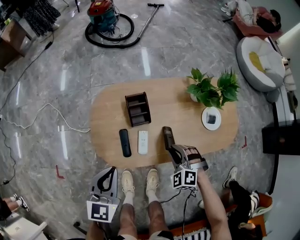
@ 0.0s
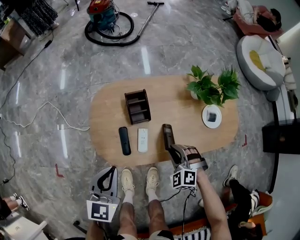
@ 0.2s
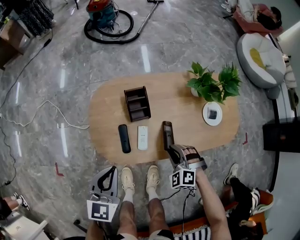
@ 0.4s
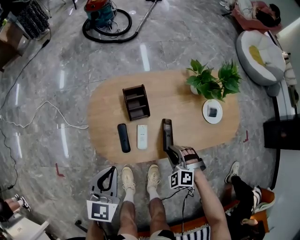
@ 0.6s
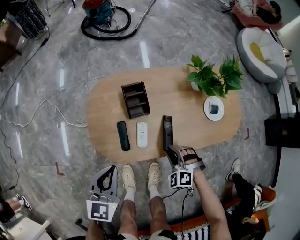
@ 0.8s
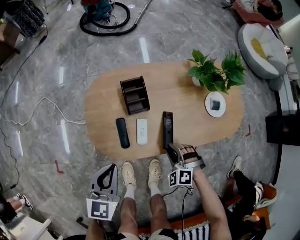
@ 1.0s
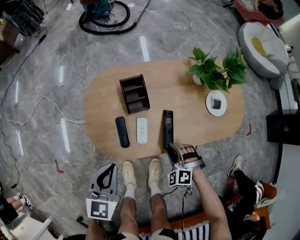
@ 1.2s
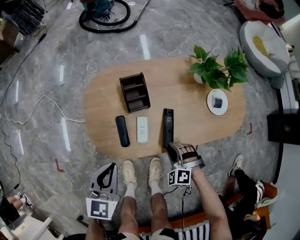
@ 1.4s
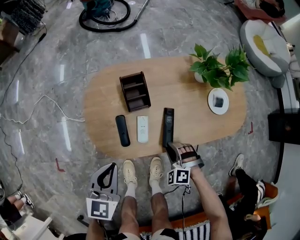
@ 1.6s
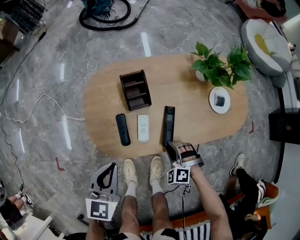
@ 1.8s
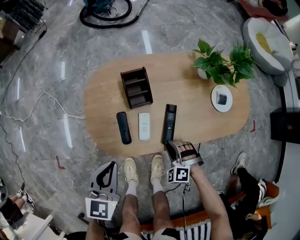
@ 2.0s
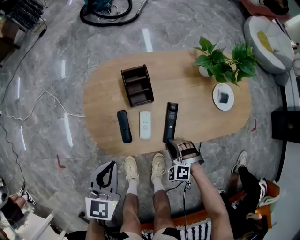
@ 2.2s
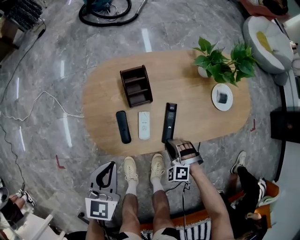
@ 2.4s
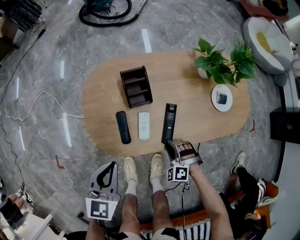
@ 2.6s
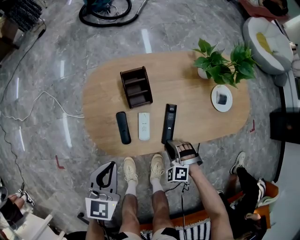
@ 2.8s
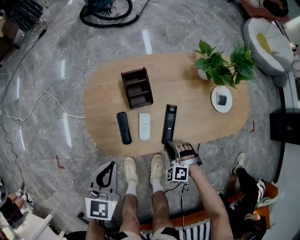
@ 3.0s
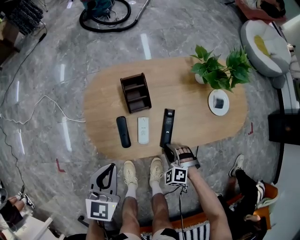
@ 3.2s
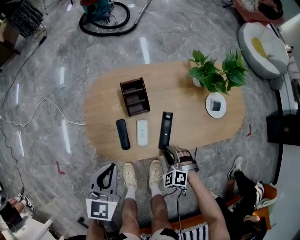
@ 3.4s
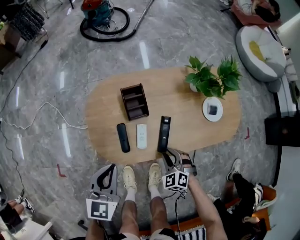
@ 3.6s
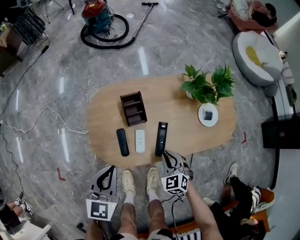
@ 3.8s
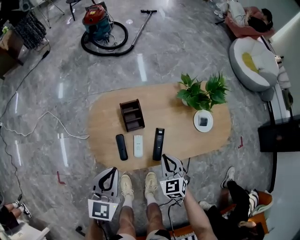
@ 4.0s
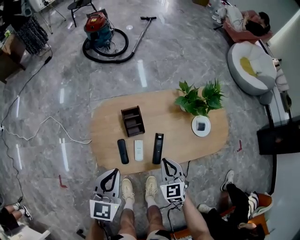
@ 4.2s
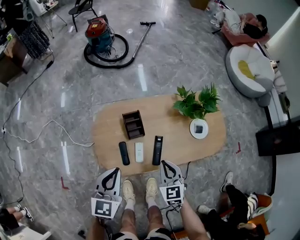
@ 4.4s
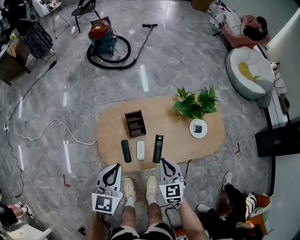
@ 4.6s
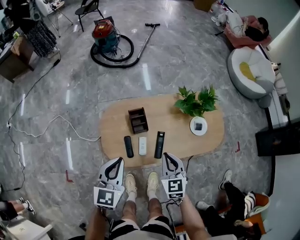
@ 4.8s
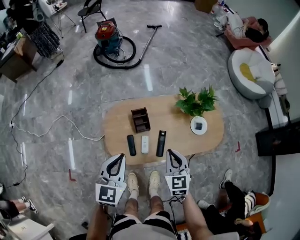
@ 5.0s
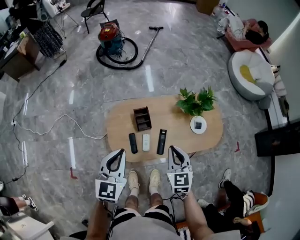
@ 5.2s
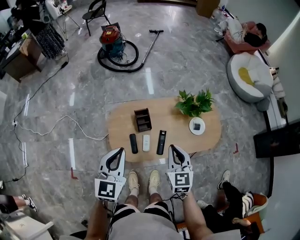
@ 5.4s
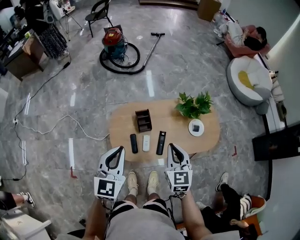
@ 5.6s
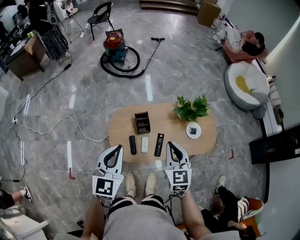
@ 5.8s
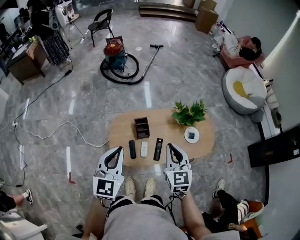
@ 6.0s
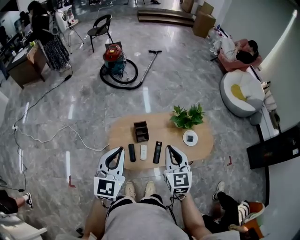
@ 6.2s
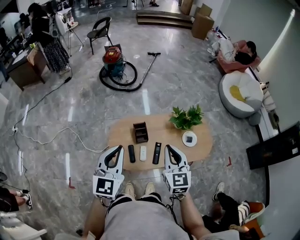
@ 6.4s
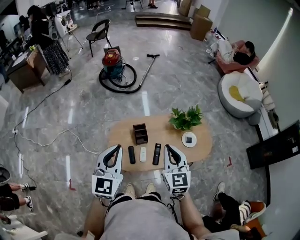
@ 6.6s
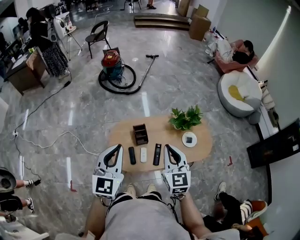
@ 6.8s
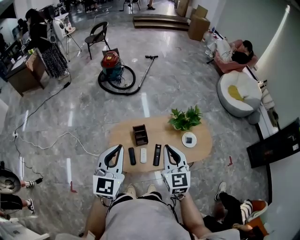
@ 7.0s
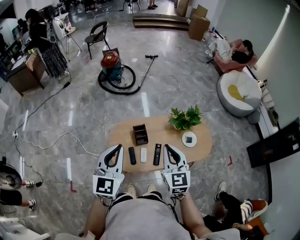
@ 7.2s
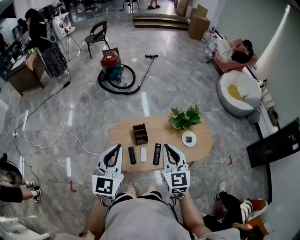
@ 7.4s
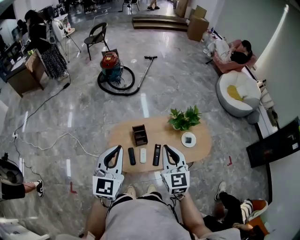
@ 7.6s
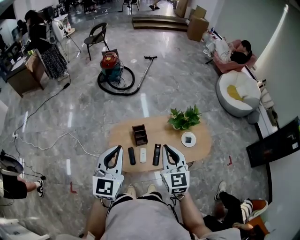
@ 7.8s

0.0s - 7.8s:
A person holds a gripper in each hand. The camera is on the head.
0.0s - 1.6s: The right gripper travels downward and backward by about 10 cm; the left gripper heads downward, covering roughly 5 cm.
1.6s - 3.2s: The grippers stay close to where they were, moving slightly.
3.2s - 4.6s: The right gripper moves upward, about 30 cm, rotates around the line of its fingers by some 50 degrees, clockwise from behind, and closes up; the left gripper shifts approximately 15 cm upward.
4.6s - 6.2s: The two grippers go about 25 cm upward.
6.2s - 7.8s: The grippers stay close to where they were, moving slightly.

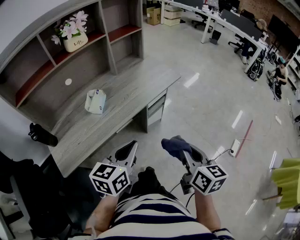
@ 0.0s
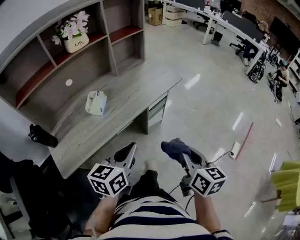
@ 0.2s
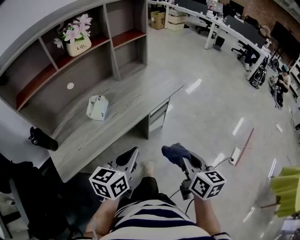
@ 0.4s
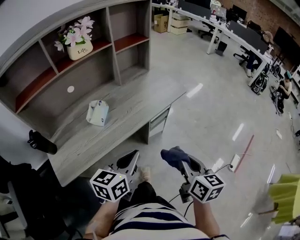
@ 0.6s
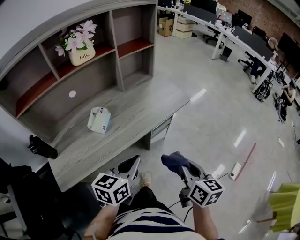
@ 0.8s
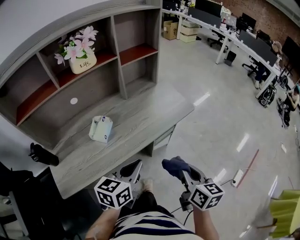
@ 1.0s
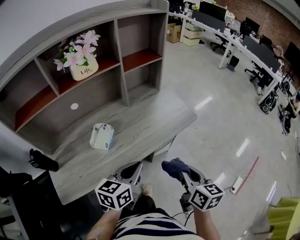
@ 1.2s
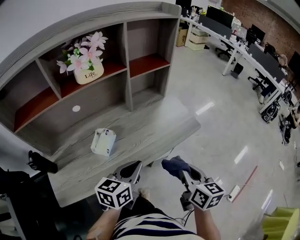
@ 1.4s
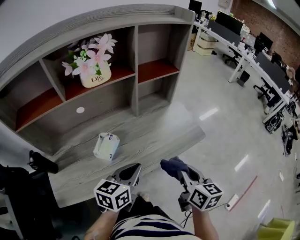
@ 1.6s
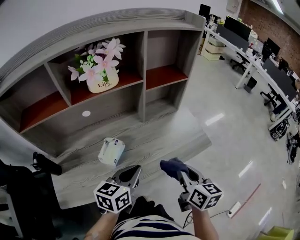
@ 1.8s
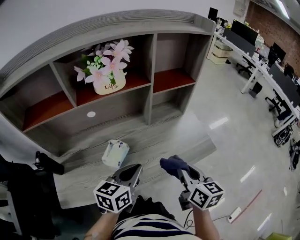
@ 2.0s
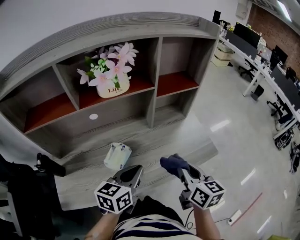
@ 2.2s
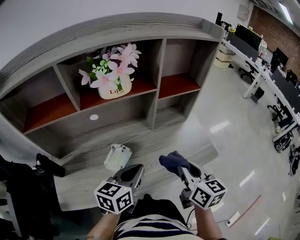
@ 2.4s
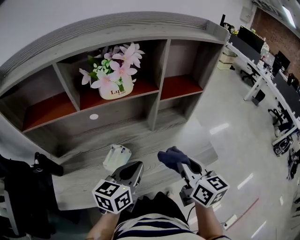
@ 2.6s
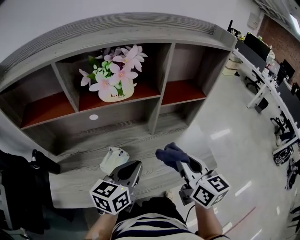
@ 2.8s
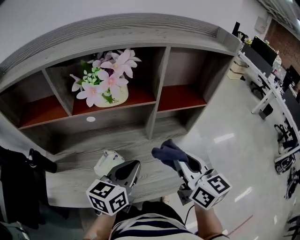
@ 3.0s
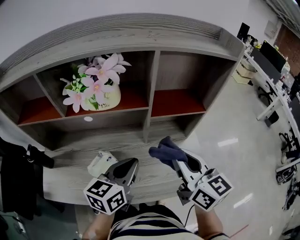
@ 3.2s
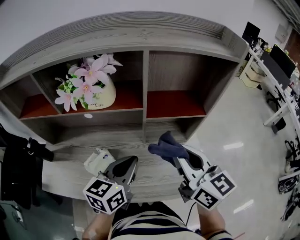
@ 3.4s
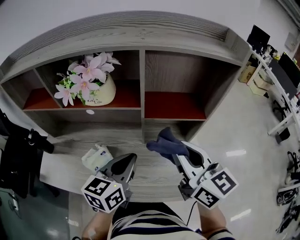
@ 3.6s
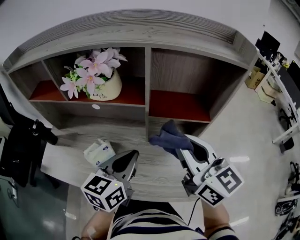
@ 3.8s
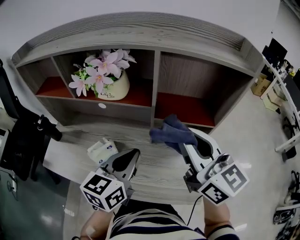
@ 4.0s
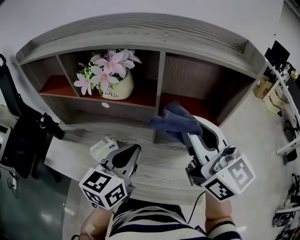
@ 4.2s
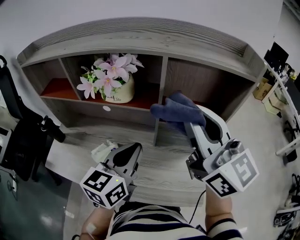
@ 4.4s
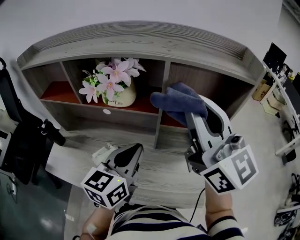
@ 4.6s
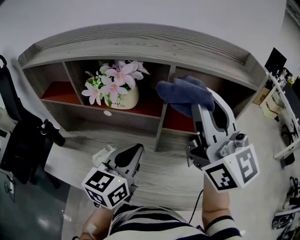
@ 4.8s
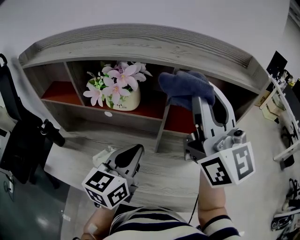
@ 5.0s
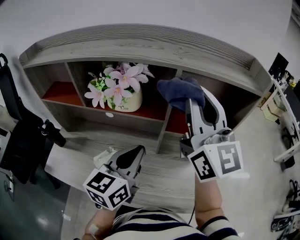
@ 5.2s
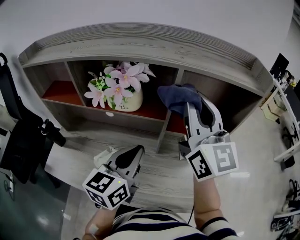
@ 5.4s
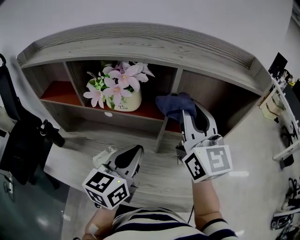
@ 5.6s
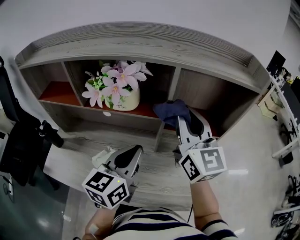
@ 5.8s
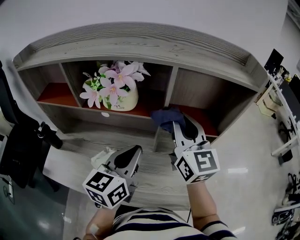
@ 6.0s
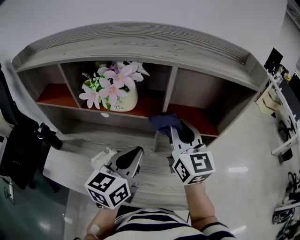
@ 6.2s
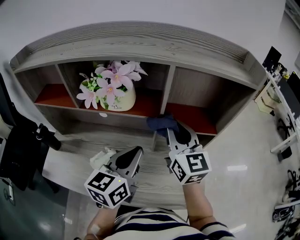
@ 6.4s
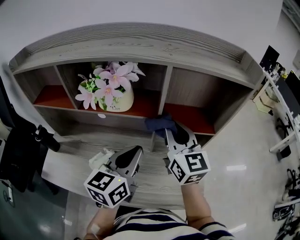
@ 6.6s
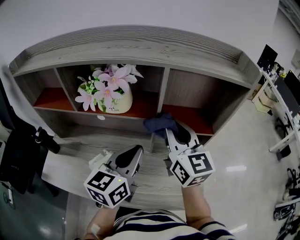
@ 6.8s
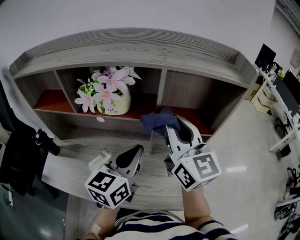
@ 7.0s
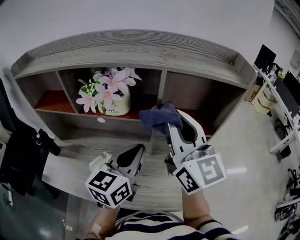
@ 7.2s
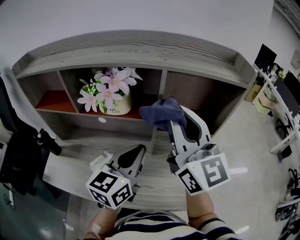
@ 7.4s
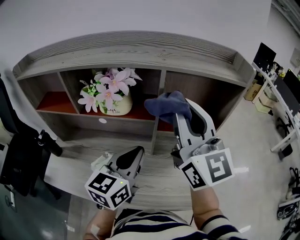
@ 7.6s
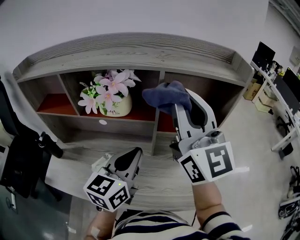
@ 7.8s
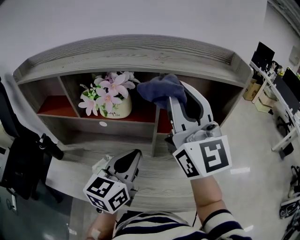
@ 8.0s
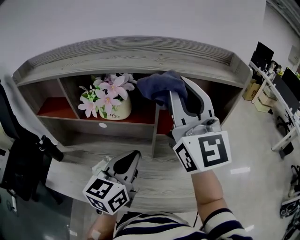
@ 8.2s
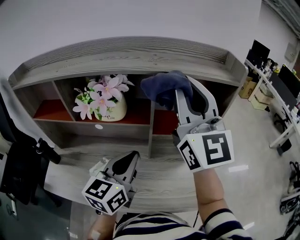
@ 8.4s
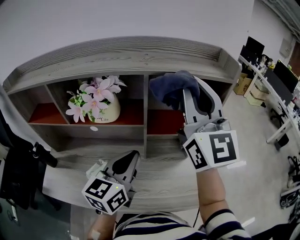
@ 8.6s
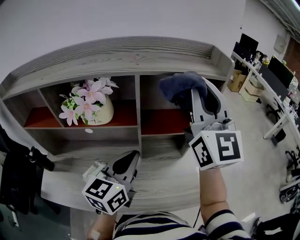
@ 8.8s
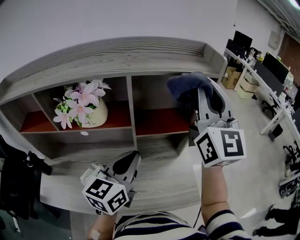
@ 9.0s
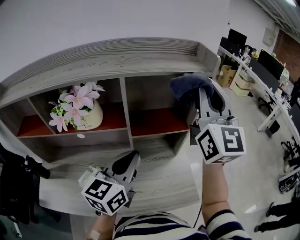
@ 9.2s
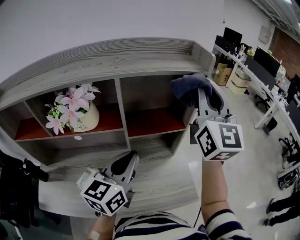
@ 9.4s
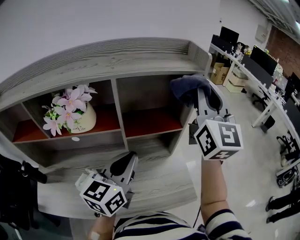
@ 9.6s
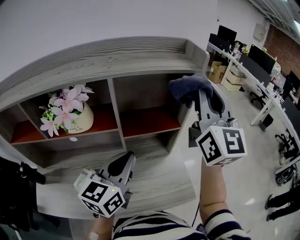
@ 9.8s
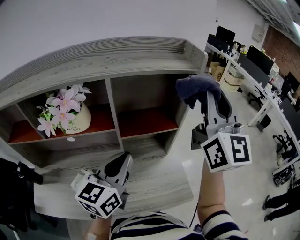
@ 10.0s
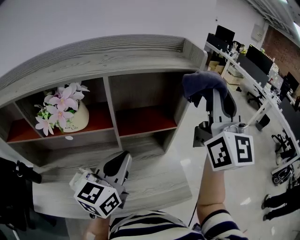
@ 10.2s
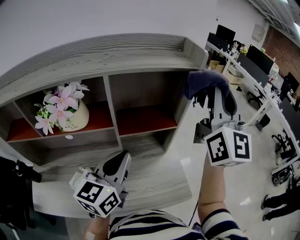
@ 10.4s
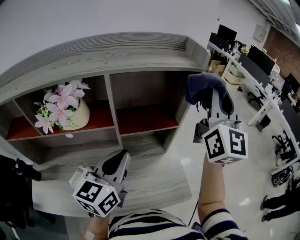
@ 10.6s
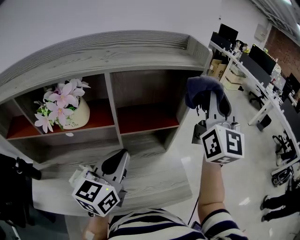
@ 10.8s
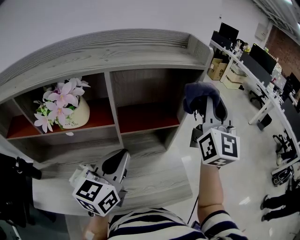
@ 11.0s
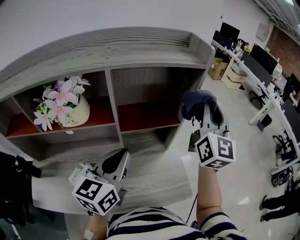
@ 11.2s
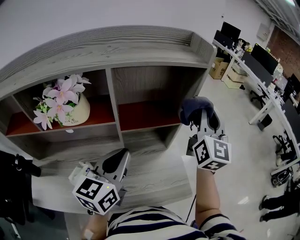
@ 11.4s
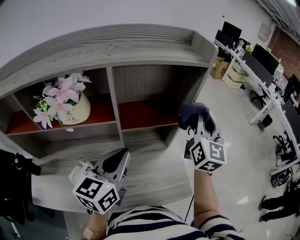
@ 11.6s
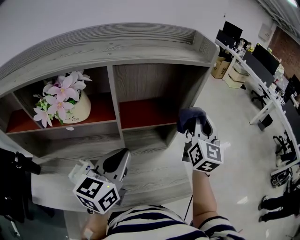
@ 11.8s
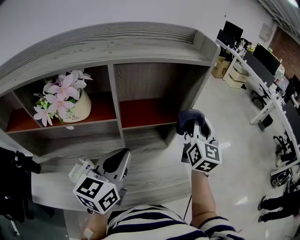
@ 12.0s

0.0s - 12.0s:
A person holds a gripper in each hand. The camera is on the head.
0.0s - 1.6s: Both grippers move forward, some 20 cm.
1.6s - 3.0s: The right gripper shifts roughly 20 cm forward and upward, and swivels some 30 degrees, while the left gripper is displaced forward and upward by some 15 cm.
3.0s - 4.4s: The left gripper goes approximately 10 cm upward, and rotates about 30 degrees. Meanwhile the right gripper travels upward by approximately 20 cm, and rotates roughly 40 degrees.
4.4s - 6.0s: The right gripper goes approximately 10 cm downward and forward.
6.0s - 7.6s: The right gripper heads upward, covering approximately 10 cm.
7.6s - 9.0s: The right gripper moves to the right, about 15 cm, and swivels roughly 20 degrees.
9.0s - 10.4s: The right gripper moves to the right, roughly 10 cm.
10.4s - 12.0s: The right gripper heads downward, covering some 20 cm, and turns by about 30 degrees.

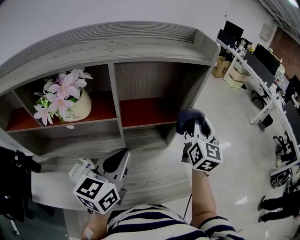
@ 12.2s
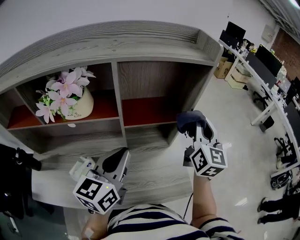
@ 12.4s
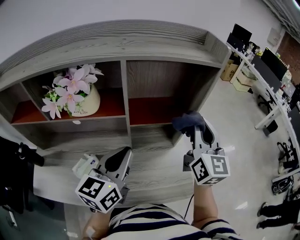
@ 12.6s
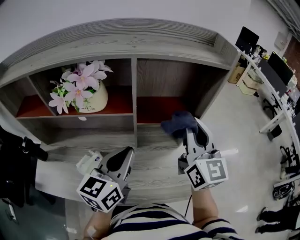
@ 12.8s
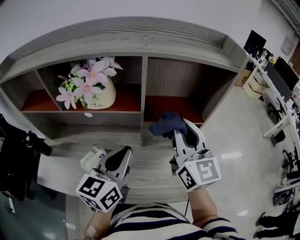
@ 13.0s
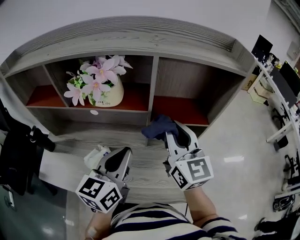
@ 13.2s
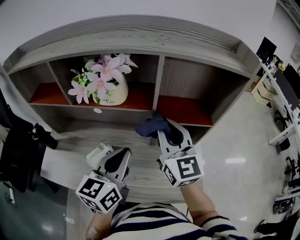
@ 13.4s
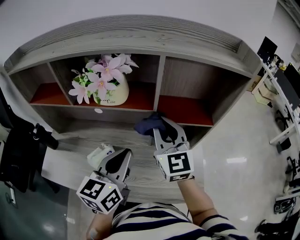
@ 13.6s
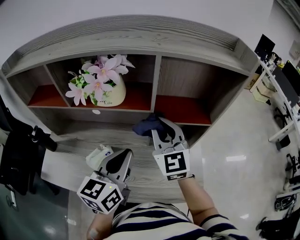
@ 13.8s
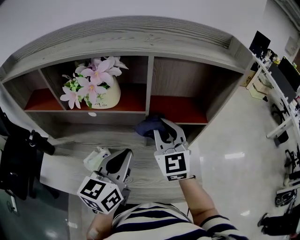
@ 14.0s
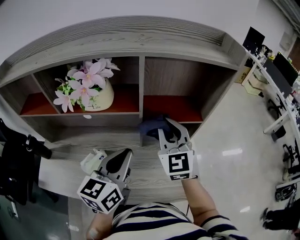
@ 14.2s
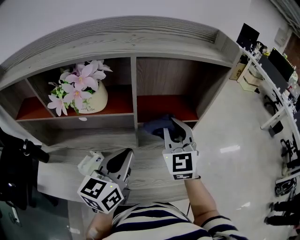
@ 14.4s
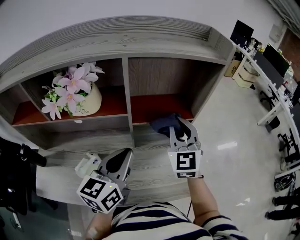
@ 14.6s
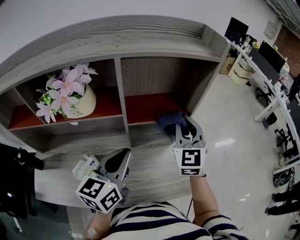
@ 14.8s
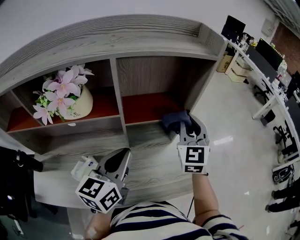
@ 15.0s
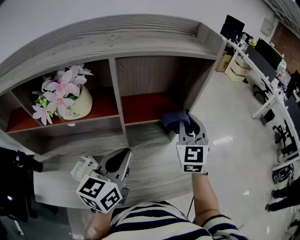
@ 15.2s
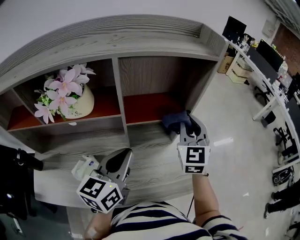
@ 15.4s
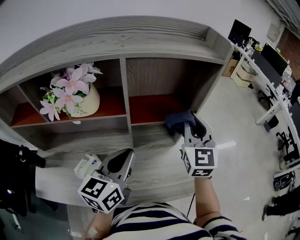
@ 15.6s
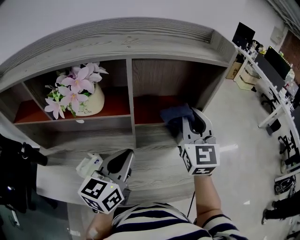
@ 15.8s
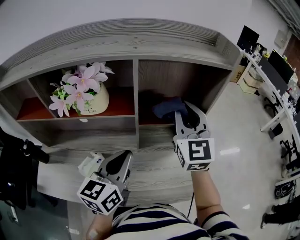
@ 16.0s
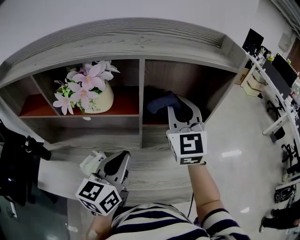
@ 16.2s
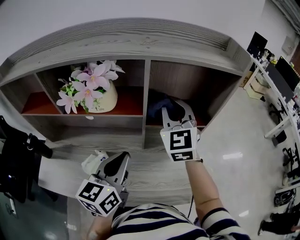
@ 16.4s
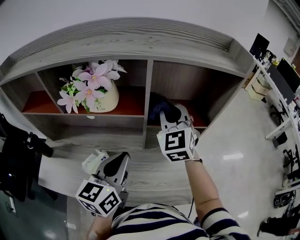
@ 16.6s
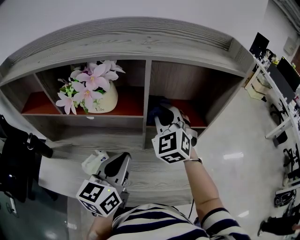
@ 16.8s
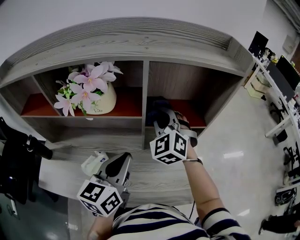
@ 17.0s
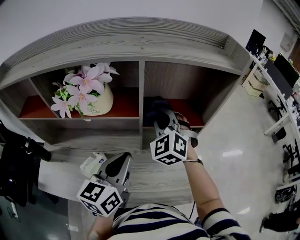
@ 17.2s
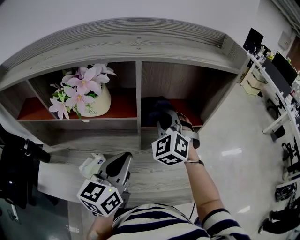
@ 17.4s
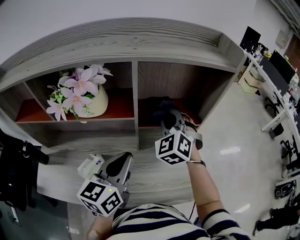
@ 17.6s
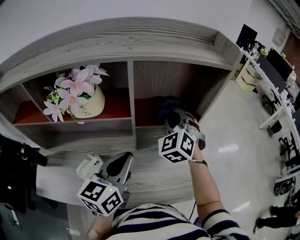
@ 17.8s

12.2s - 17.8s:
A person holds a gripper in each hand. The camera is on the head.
12.2s - 13.6s: The right gripper changes place by roughly 30 cm, and swivels roughly 40 degrees. The left gripper shifts by approximately 10 cm.
13.6s - 15.0s: The right gripper goes some 20 cm to the right, and rotates roughly 30 degrees. The left gripper goes roughly 5 cm to the right.
15.0s - 16.4s: The left gripper travels to the left by roughly 5 cm. Meanwhile the right gripper is displaced to the left by some 15 cm, and rotates approximately 20 degrees.
16.4s - 17.8s: The right gripper goes approximately 10 cm downward and to the right, and swivels some 30 degrees.
